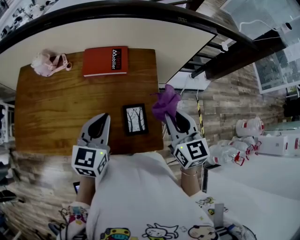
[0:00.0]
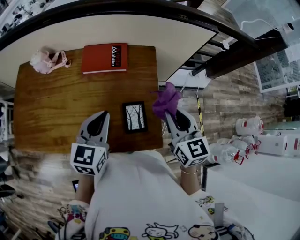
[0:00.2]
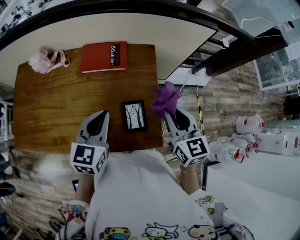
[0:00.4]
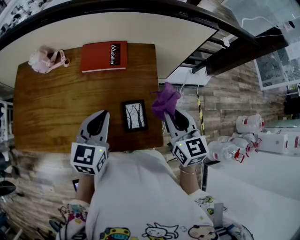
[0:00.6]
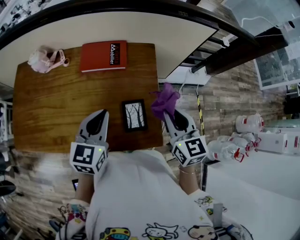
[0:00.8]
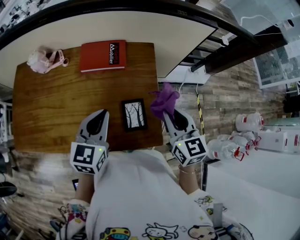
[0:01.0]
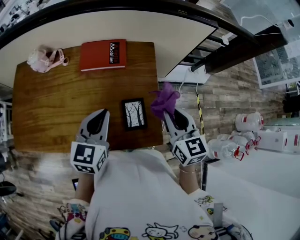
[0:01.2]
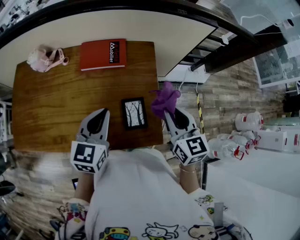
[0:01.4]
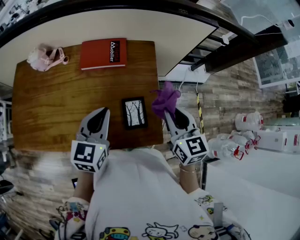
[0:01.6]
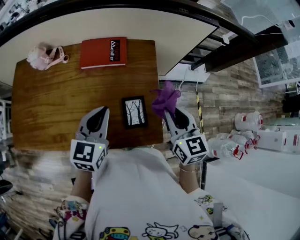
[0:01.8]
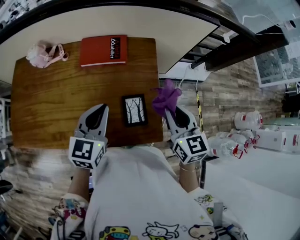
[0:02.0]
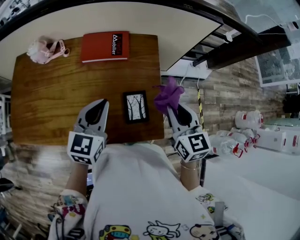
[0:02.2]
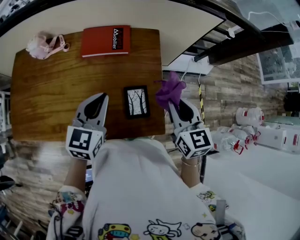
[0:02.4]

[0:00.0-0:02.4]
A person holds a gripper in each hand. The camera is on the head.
0:00.0 to 0:02.4: The grippers stay close to where they were, moving slightly.

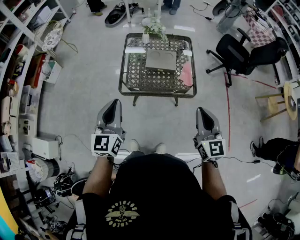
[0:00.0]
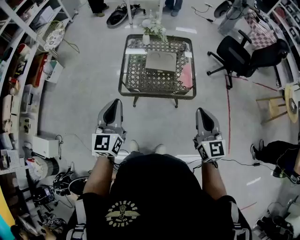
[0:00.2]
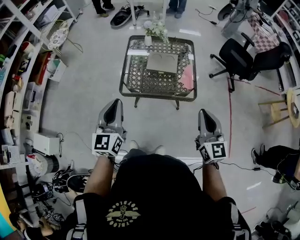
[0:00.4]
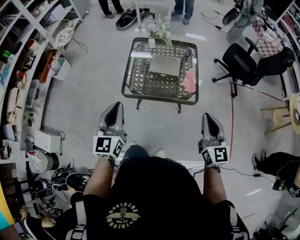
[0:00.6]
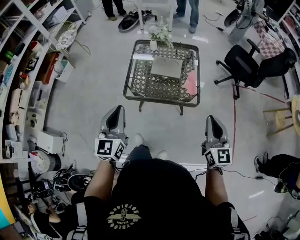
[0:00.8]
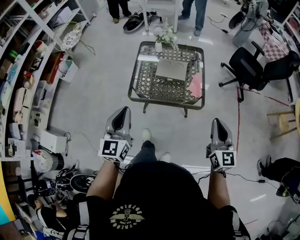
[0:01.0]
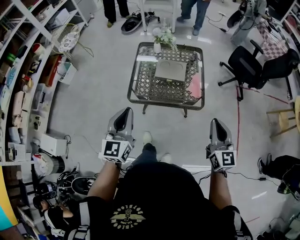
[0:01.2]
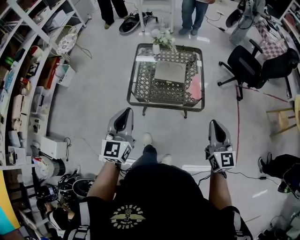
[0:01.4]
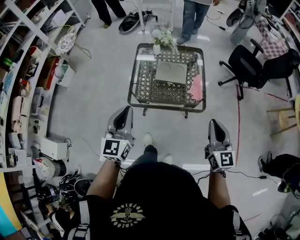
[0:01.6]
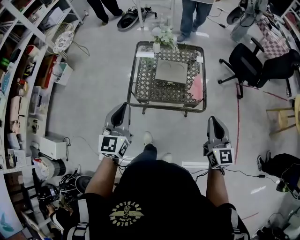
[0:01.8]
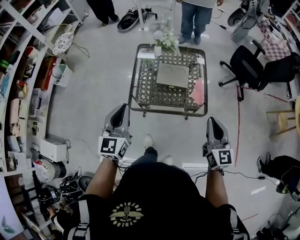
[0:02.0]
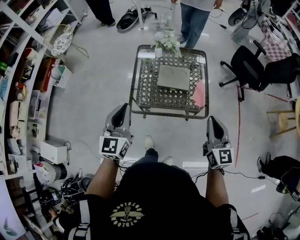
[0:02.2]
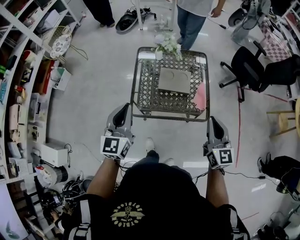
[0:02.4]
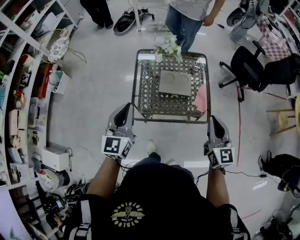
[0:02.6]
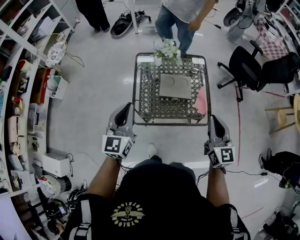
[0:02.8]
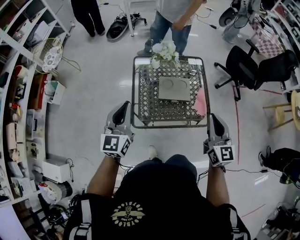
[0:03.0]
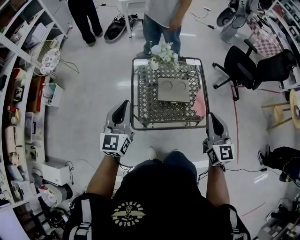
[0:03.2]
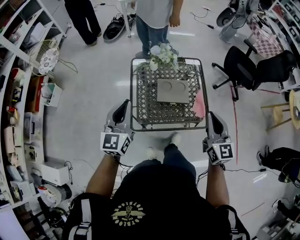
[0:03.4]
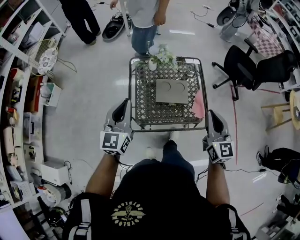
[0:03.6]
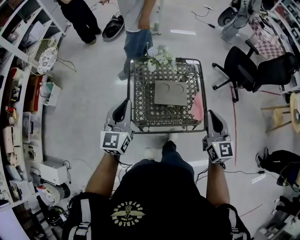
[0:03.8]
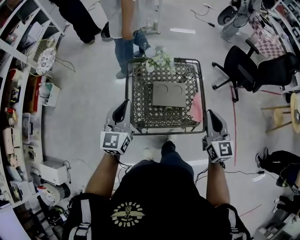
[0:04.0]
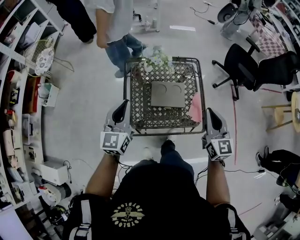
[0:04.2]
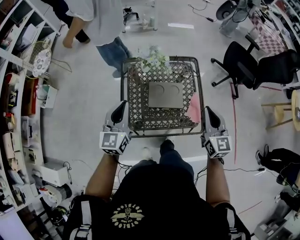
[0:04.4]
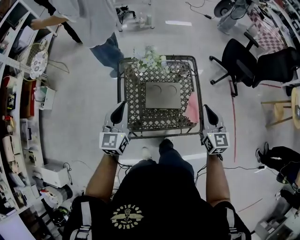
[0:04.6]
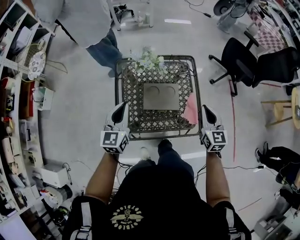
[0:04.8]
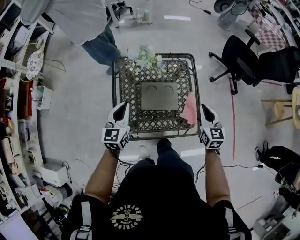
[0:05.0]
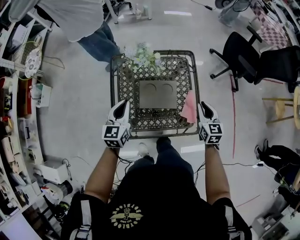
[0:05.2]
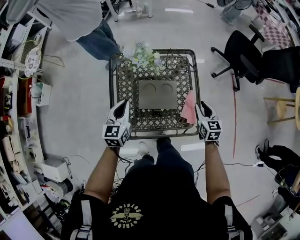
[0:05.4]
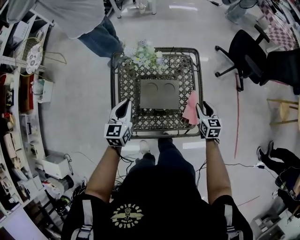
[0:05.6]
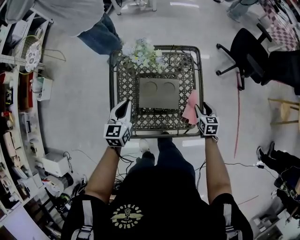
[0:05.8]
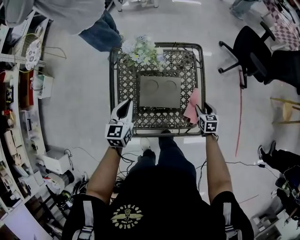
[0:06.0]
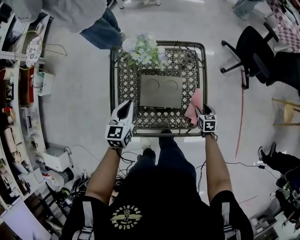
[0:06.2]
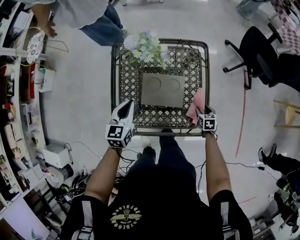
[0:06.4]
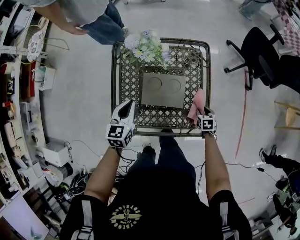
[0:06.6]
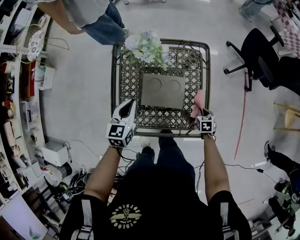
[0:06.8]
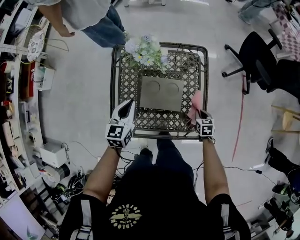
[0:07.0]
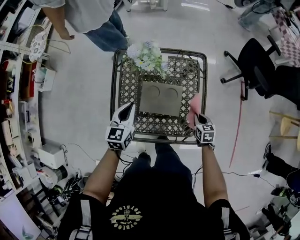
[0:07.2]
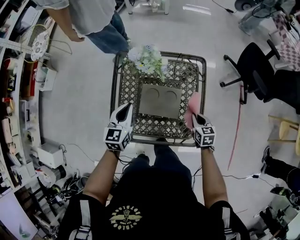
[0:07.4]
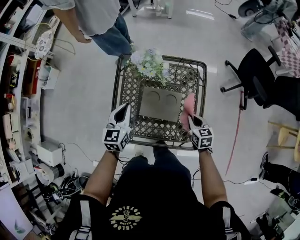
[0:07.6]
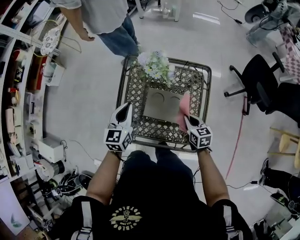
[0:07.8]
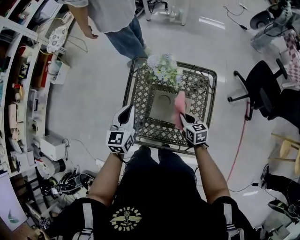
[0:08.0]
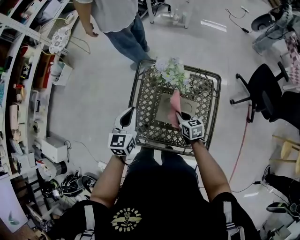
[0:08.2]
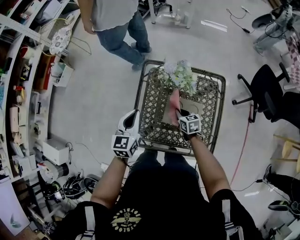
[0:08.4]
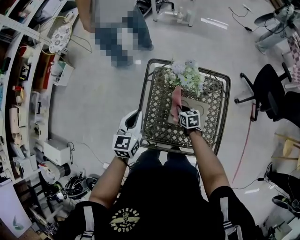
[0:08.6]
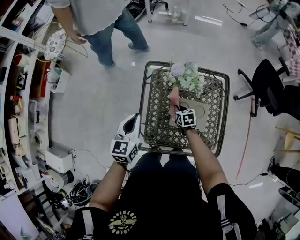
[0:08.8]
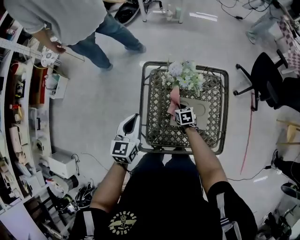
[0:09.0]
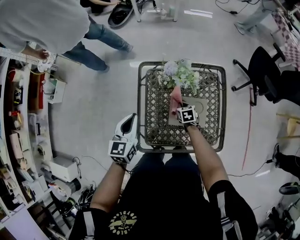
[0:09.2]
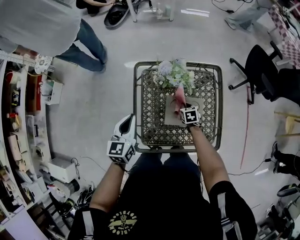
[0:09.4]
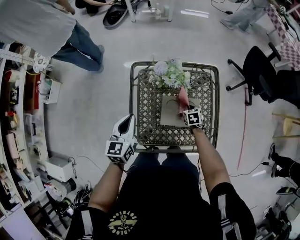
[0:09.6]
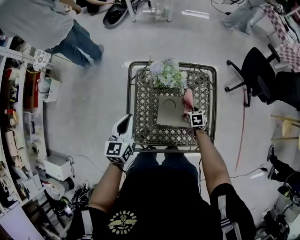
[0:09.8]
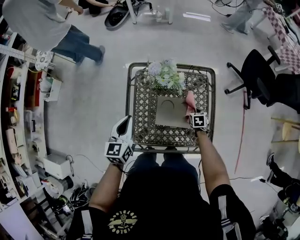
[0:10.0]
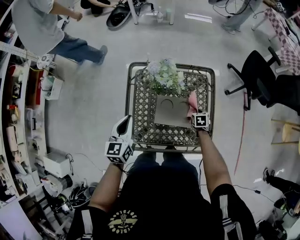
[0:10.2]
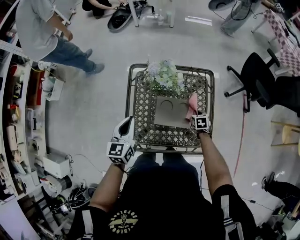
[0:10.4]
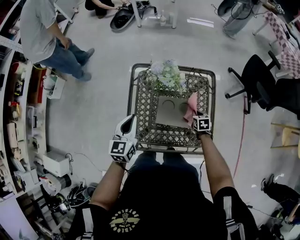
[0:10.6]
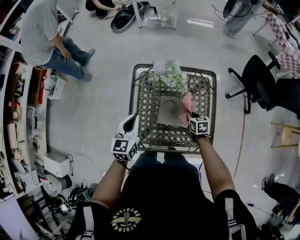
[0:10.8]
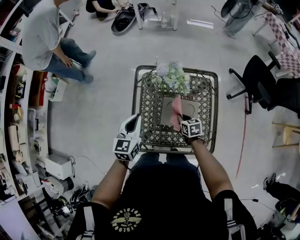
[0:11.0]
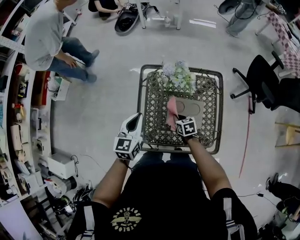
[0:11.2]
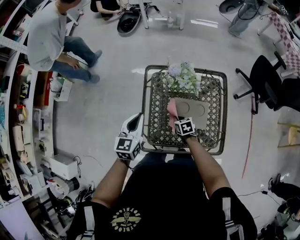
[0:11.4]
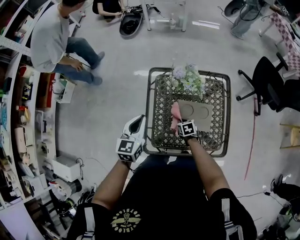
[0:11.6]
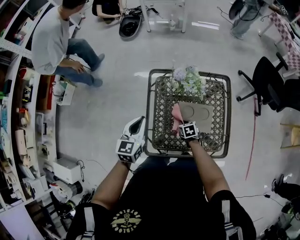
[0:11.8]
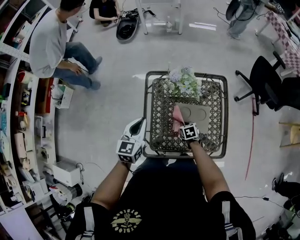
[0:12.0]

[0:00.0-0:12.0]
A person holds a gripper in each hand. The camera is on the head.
0:00.0 to 0:01.6: The right gripper goes some 5 cm to the right; the left gripper changes place by some 5 cm.
0:01.6 to 0:03.0: The two grippers go about 20 cm forward and to the left.
0:03.0 to 0:04.4: The right gripper heads forward and downward, covering approximately 15 cm, while the left gripper heads forward, downward and to the right, covering roughly 15 cm.
0:04.4 to 0:06.0: The right gripper heads downward, covering some 35 cm, angles its fingers downward, by about 40 degrees, and opens its fingers. The left gripper shifts approximately 20 cm downward and forward, and swivels roughly 20 degrees.
0:06.0 to 0:07.6: The right gripper goes some 10 cm upward and to the left, and closes up.
0:07.6 to 0:09.0: The left gripper goes approximately 15 cm to the left. The right gripper heads to the left, forward and downward, covering some 30 cm.
0:09.0 to 0:10.4: The left gripper goes about 10 cm to the right; the right gripper travels to the right by approximately 25 cm.
0:10.4 to 0:12.0: The left gripper moves to the left, roughly 5 cm, while the right gripper is displaced to the left by roughly 20 cm.

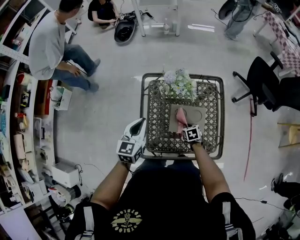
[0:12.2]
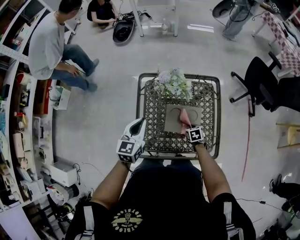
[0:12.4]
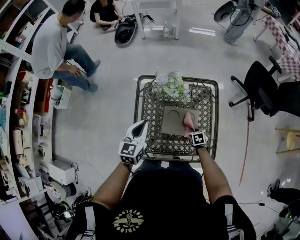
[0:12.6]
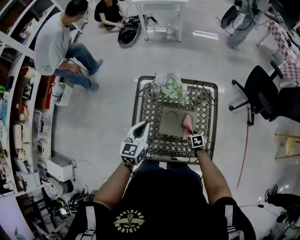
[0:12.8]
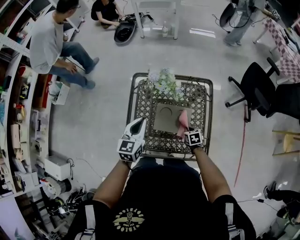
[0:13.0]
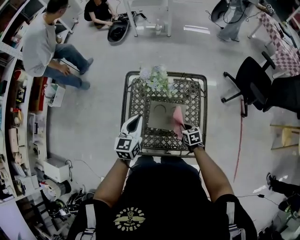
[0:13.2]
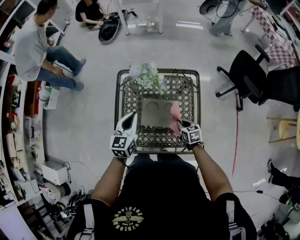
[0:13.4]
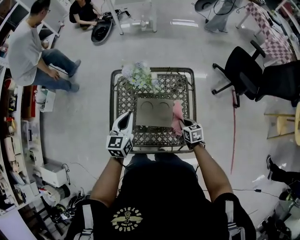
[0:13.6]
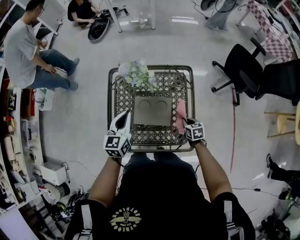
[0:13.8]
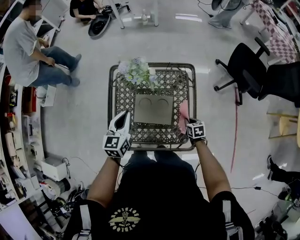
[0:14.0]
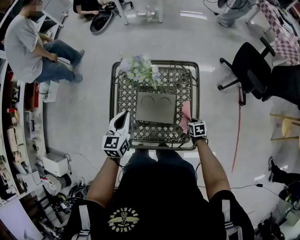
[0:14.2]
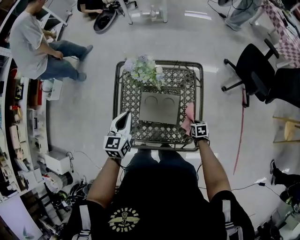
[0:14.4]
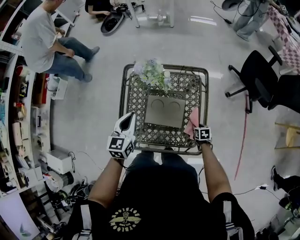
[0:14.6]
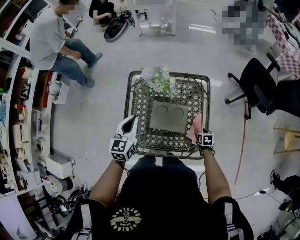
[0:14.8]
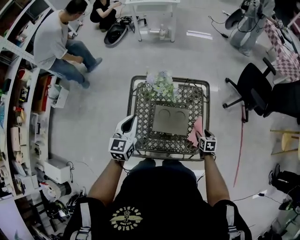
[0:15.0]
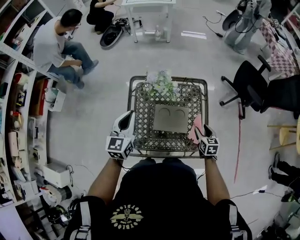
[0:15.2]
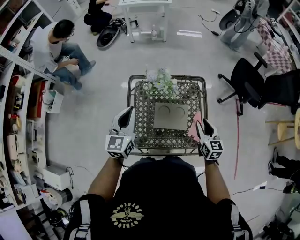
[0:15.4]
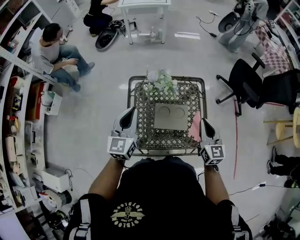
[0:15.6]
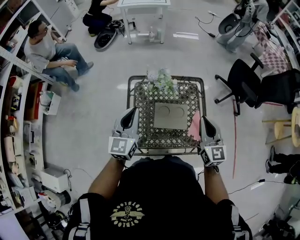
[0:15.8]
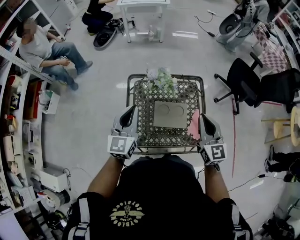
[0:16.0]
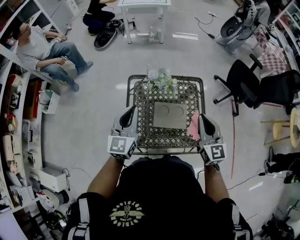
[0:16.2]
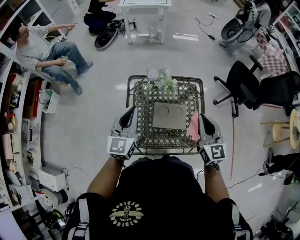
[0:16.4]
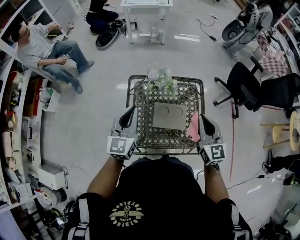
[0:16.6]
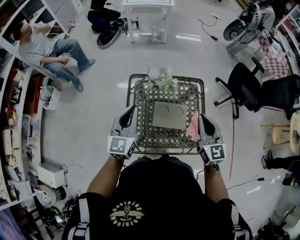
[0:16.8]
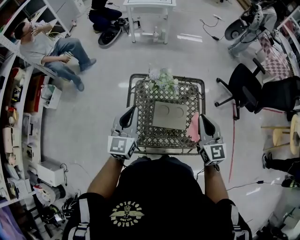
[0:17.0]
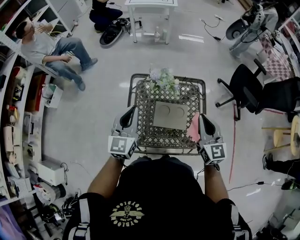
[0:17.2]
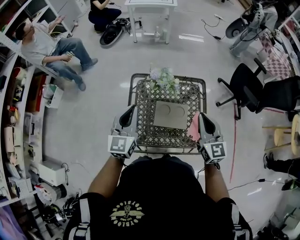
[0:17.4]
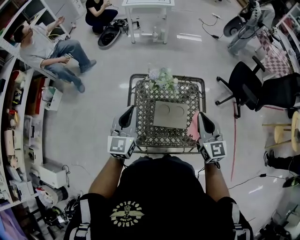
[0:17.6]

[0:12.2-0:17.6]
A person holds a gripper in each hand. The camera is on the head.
0:12.2 to 0:13.6: The left gripper is displaced to the right by roughly 15 cm, while the right gripper heads to the right and upward, covering some 20 cm.
0:13.6 to 0:15.0: The right gripper goes downward and returns, roughly 10 cm each way, and opens. Meanwhile the left gripper moves to the left and upward, approximately 10 cm.
0:15.0 to 0:16.2: The left gripper is displaced upward by roughly 10 cm; the right gripper shifts some 35 cm upward, tips its fingers upward by roughly 50 degrees, and closes up.
0:16.2 to 0:17.6: Both grippers stay put.

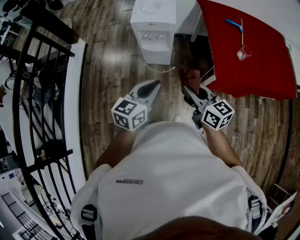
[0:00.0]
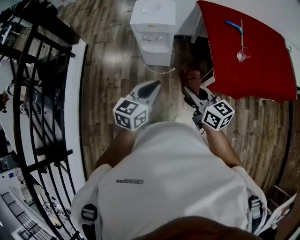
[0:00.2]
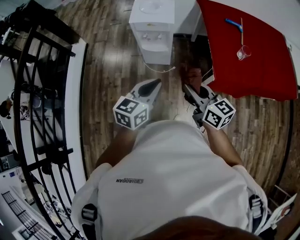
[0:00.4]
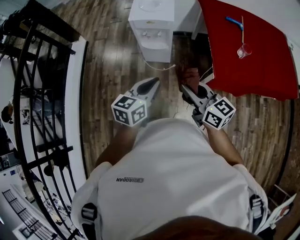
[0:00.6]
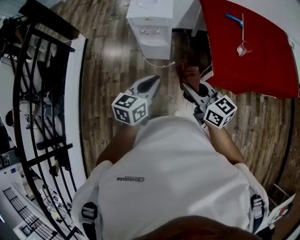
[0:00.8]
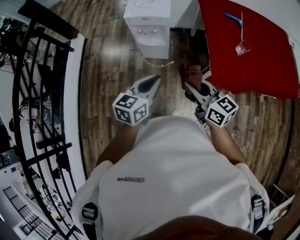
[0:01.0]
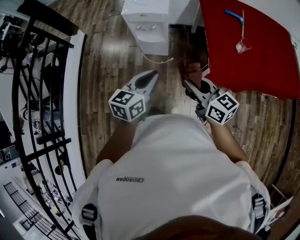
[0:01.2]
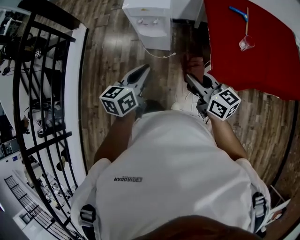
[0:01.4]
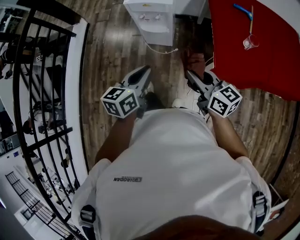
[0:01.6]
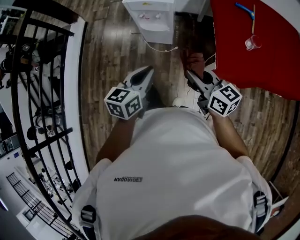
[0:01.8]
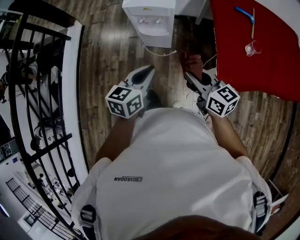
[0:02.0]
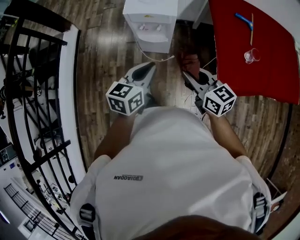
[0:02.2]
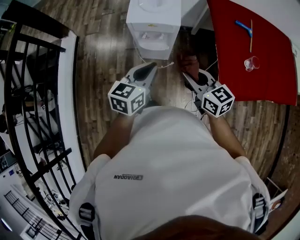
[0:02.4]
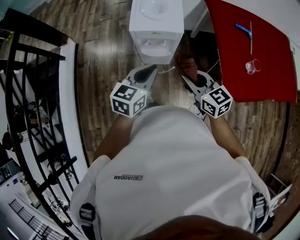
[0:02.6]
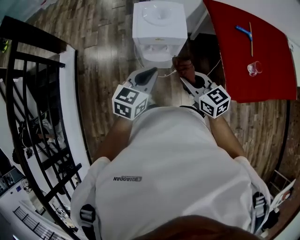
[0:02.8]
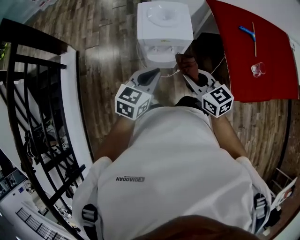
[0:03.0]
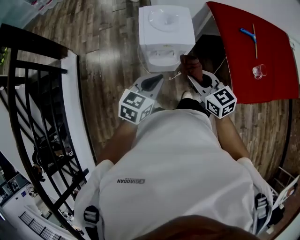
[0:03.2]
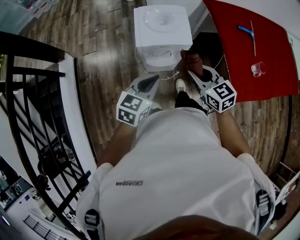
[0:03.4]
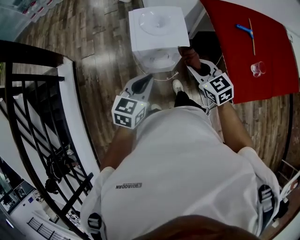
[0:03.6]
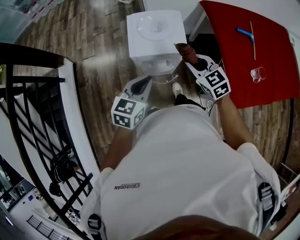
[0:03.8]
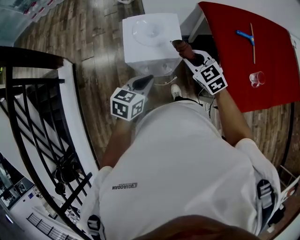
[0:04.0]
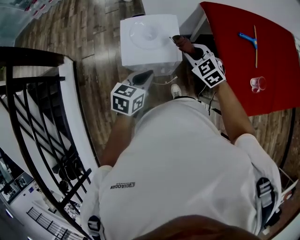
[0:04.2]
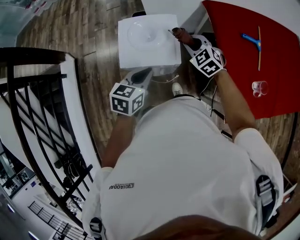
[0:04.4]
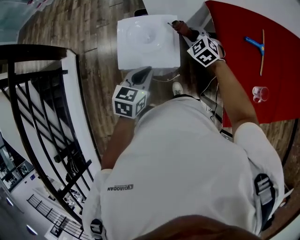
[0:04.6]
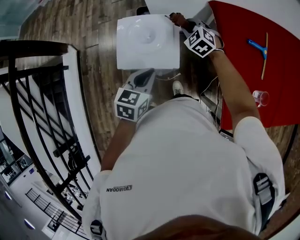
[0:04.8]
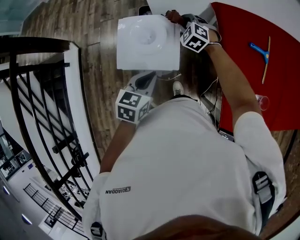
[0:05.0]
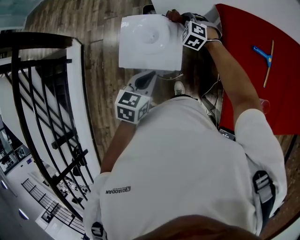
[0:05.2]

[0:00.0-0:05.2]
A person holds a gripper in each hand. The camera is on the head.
0:00.0 to 0:01.8: The left gripper shifts approximately 5 cm downward; the right gripper travels to the right by approximately 5 cm.
0:01.8 to 0:03.4: The grippers both shift forward and to the left by roughly 30 cm. The left gripper rotates roughly 30 degrees, while the right gripper changes its angle by about 30 degrees.
0:03.4 to 0:05.2: The right gripper shifts roughly 40 cm forward, and rolls counterclockwise, seen from behind, by about 50 degrees, while the left gripper is displaced forward and to the right by approximately 20 cm, and rotates approximately 20 degrees.
